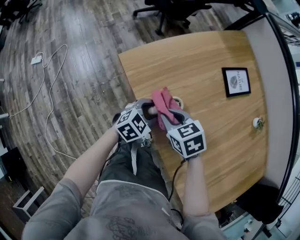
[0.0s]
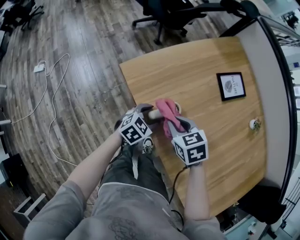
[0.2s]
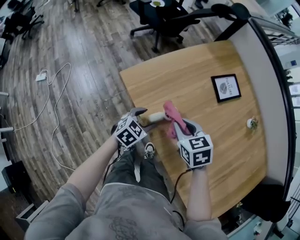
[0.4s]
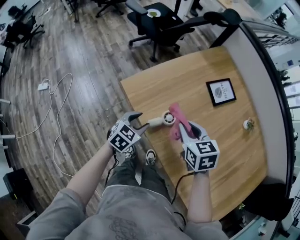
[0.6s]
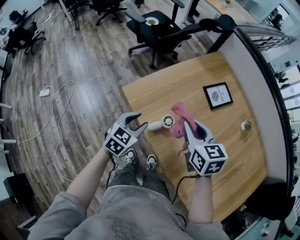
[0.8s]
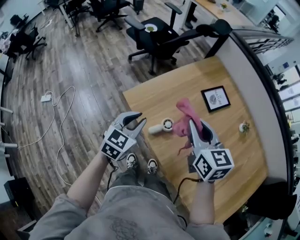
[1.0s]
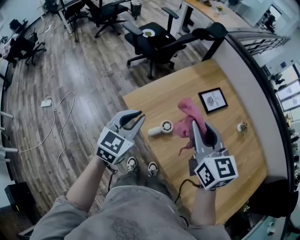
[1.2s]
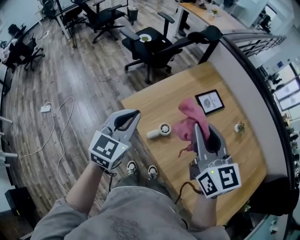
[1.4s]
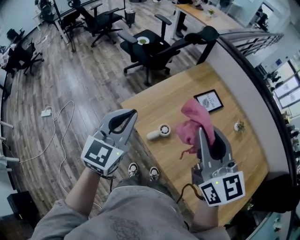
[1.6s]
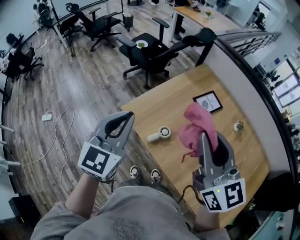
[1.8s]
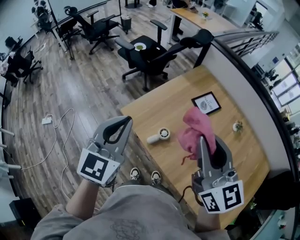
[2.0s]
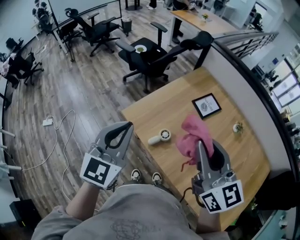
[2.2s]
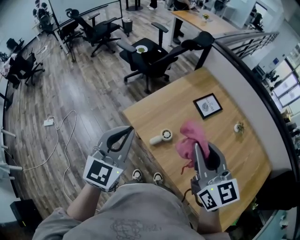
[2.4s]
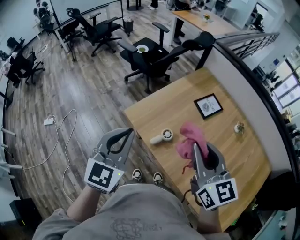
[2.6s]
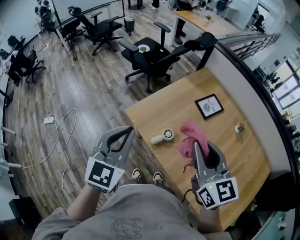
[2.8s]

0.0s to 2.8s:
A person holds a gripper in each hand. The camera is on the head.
0.0s to 1.4s: Both grippers move upward, roughly 35 cm. The left gripper rotates roughly 30 degrees, and closes up, while the right gripper tilts its fingers some 50 degrees upward.
1.4s to 2.8s: The left gripper shifts some 10 cm backward and upward. Meanwhile the right gripper travels backward by roughly 5 cm.

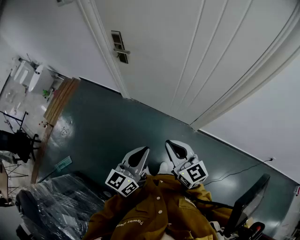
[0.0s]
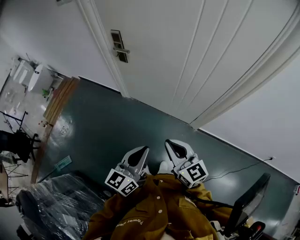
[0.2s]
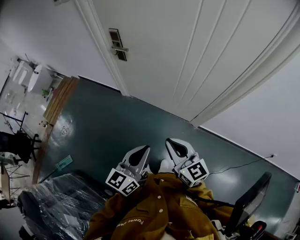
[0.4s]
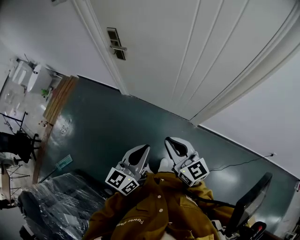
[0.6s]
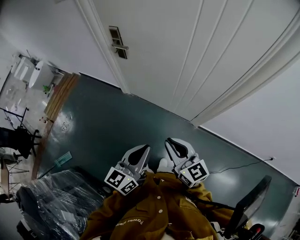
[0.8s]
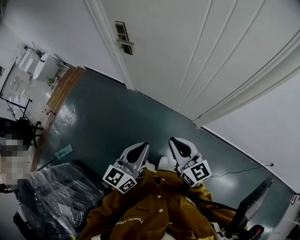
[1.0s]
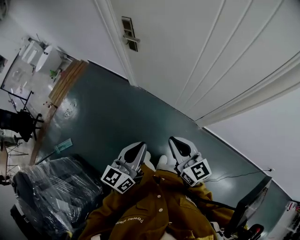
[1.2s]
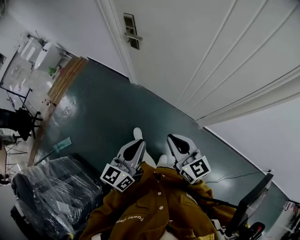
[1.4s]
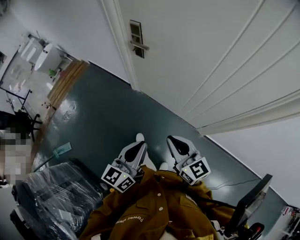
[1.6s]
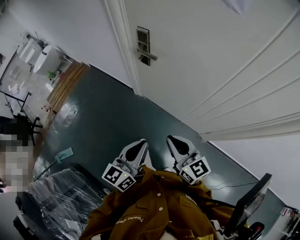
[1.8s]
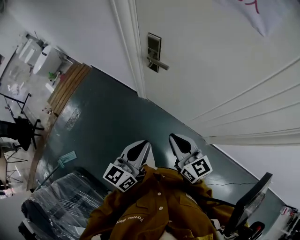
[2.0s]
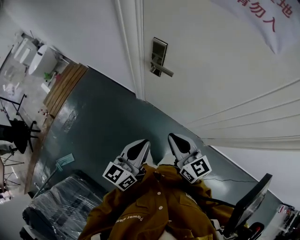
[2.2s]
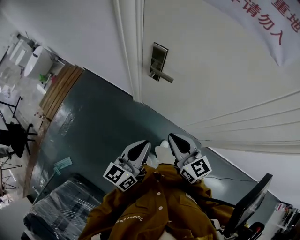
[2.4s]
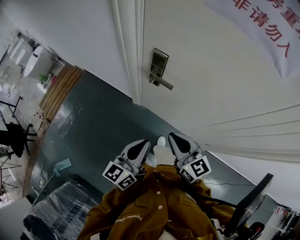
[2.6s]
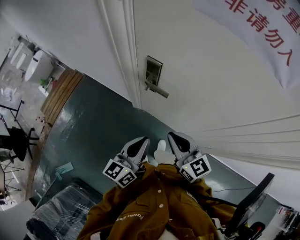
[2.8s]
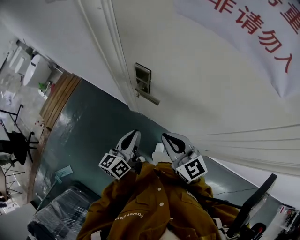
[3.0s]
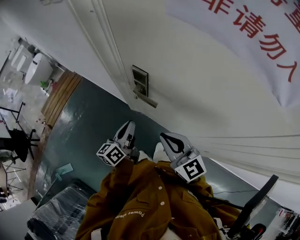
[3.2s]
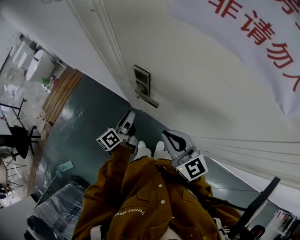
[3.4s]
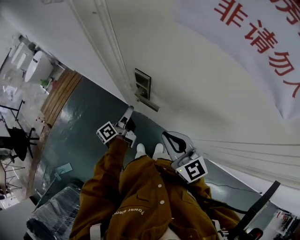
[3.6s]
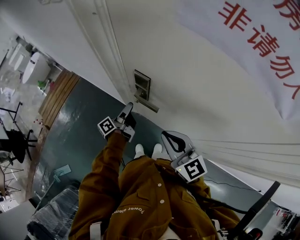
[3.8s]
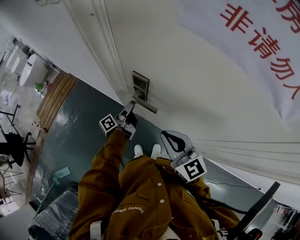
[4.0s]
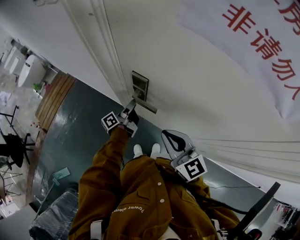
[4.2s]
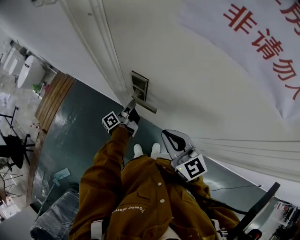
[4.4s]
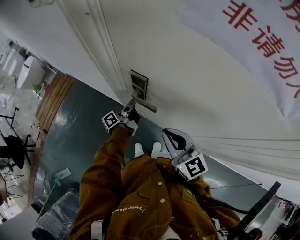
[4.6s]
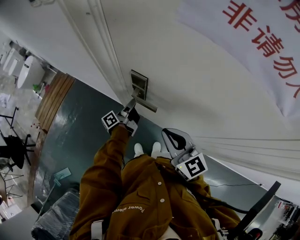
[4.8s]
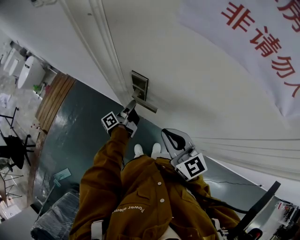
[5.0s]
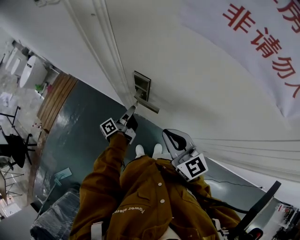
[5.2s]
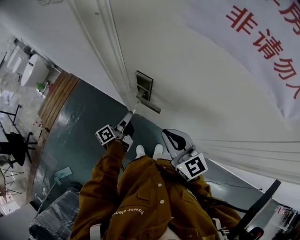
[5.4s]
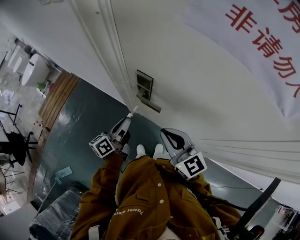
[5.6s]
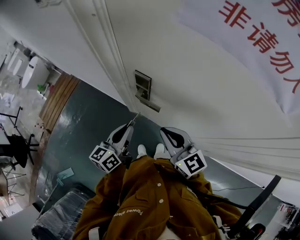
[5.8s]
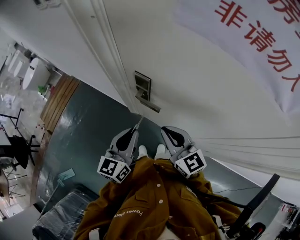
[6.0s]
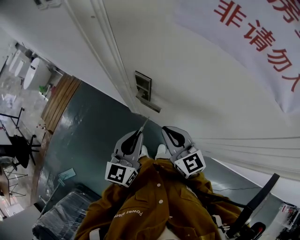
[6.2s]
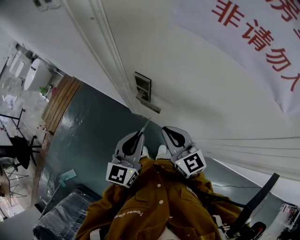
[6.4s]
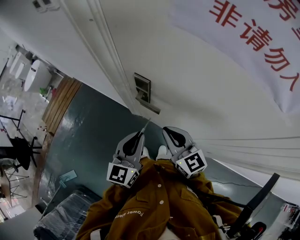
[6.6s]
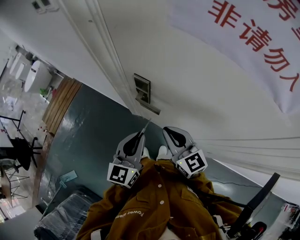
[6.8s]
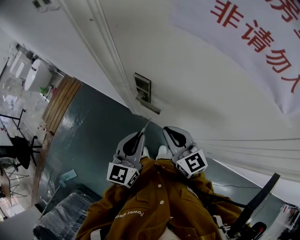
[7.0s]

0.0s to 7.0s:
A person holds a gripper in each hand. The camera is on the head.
0.0s to 1.4s: The two grippers go about 5 cm forward.
1.4s to 2.8s: The two grippers go approximately 40 cm forward.
2.8s to 4.2s: The right gripper goes some 10 cm forward; the left gripper is displaced forward and downward by approximately 30 cm, rotates around the line of its fingers by roughly 50 degrees, counterclockwise from behind, and opens its fingers.
4.2s to 5.6s: The left gripper moves backward, upward and to the left, about 15 cm, turns by approximately 30 degrees, and closes up.
5.6s to 7.0s: The left gripper travels upward, backward and to the right by some 15 cm, and twists some 50 degrees clockwise, seen from behind.

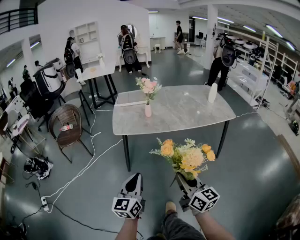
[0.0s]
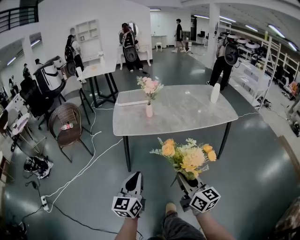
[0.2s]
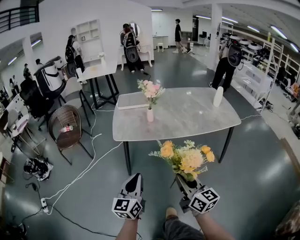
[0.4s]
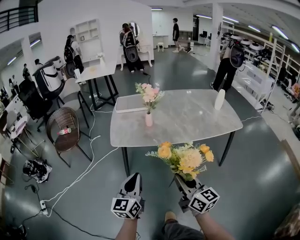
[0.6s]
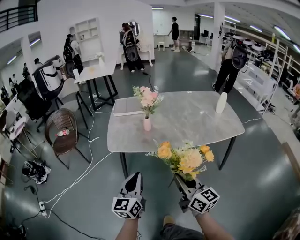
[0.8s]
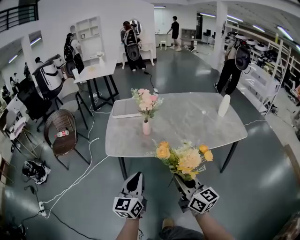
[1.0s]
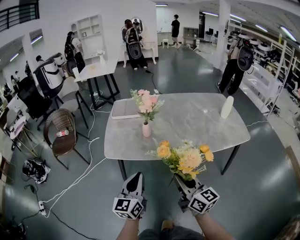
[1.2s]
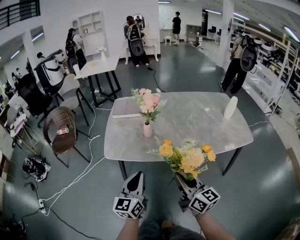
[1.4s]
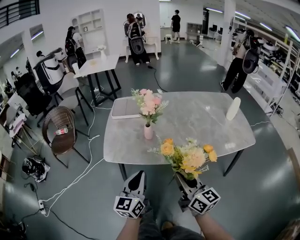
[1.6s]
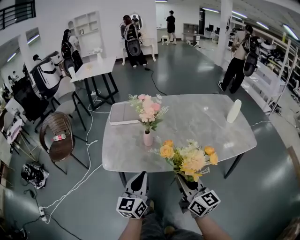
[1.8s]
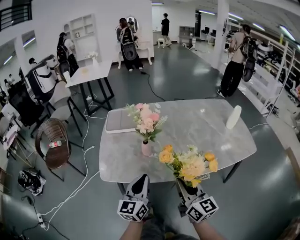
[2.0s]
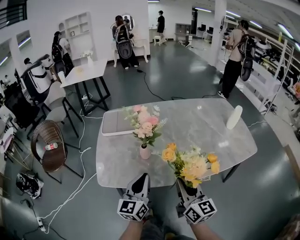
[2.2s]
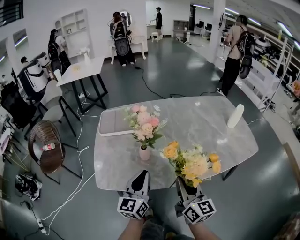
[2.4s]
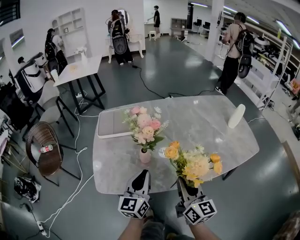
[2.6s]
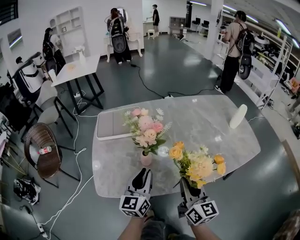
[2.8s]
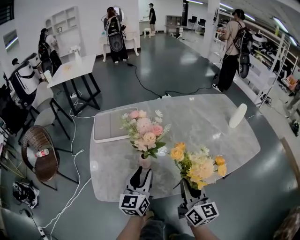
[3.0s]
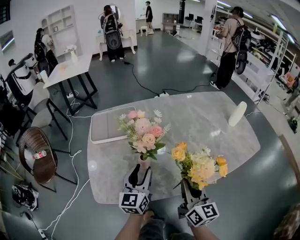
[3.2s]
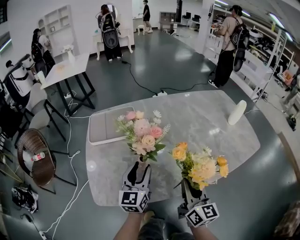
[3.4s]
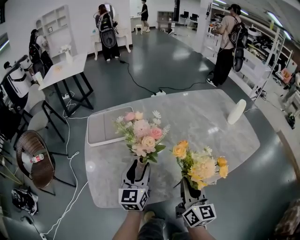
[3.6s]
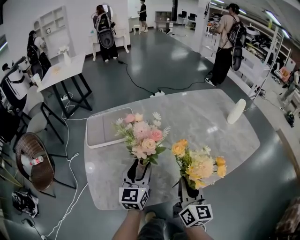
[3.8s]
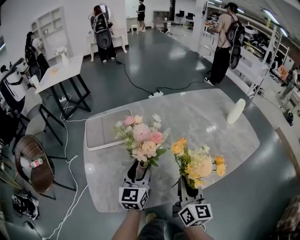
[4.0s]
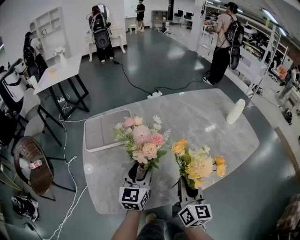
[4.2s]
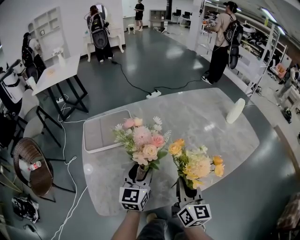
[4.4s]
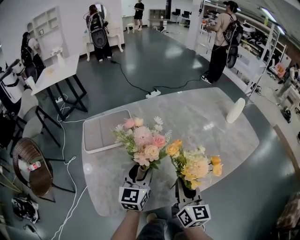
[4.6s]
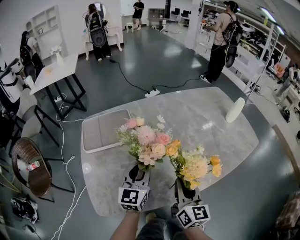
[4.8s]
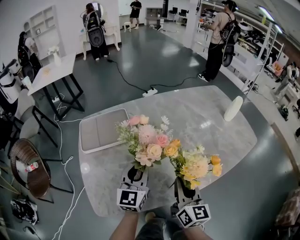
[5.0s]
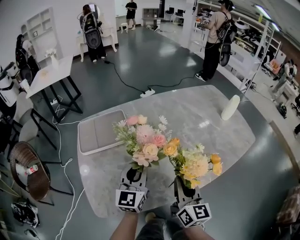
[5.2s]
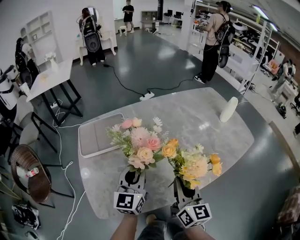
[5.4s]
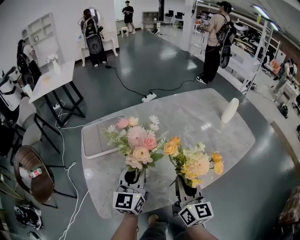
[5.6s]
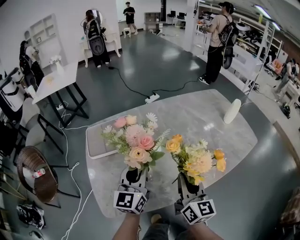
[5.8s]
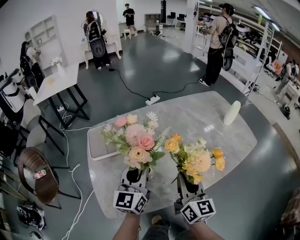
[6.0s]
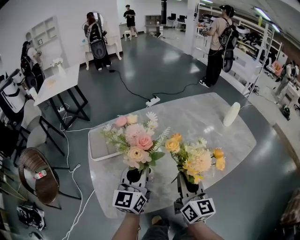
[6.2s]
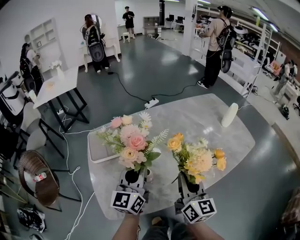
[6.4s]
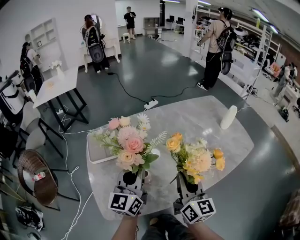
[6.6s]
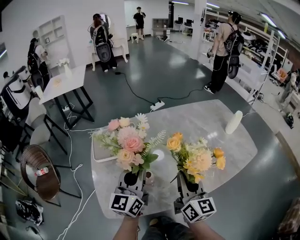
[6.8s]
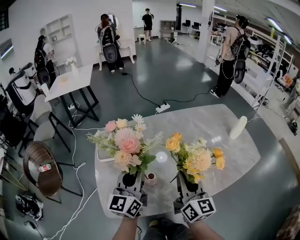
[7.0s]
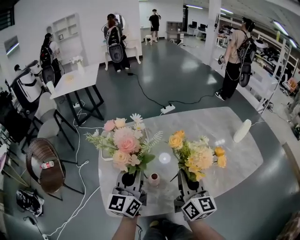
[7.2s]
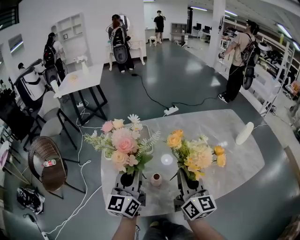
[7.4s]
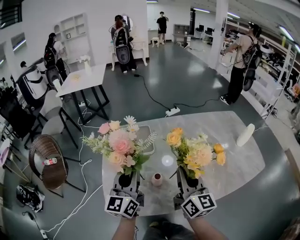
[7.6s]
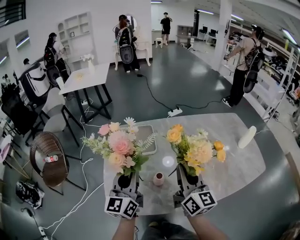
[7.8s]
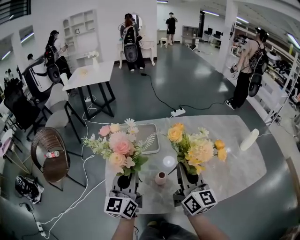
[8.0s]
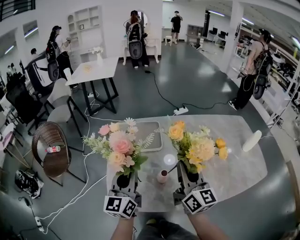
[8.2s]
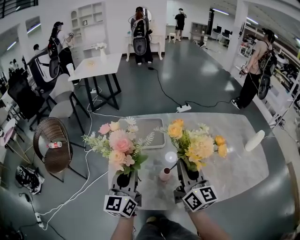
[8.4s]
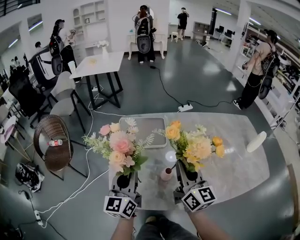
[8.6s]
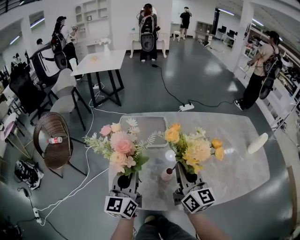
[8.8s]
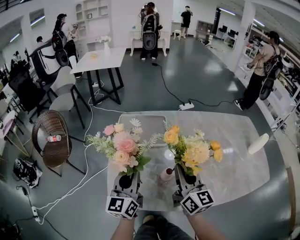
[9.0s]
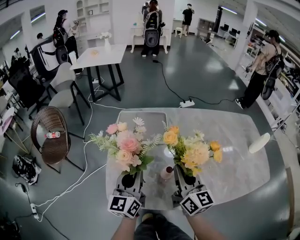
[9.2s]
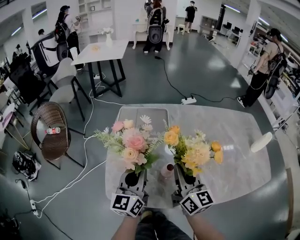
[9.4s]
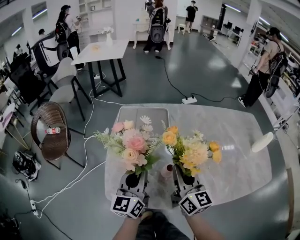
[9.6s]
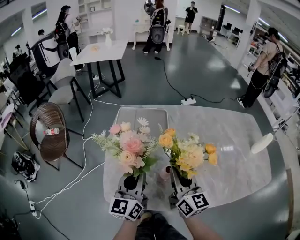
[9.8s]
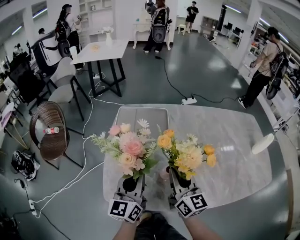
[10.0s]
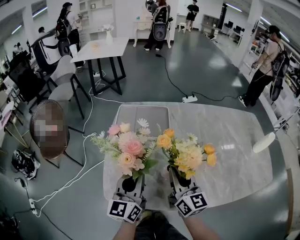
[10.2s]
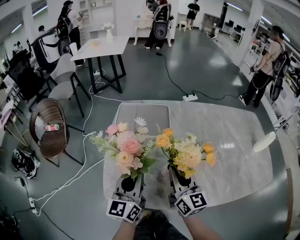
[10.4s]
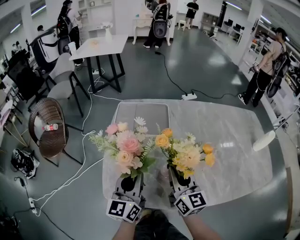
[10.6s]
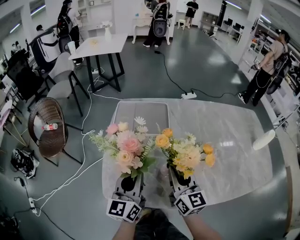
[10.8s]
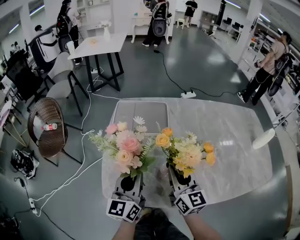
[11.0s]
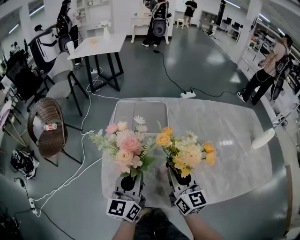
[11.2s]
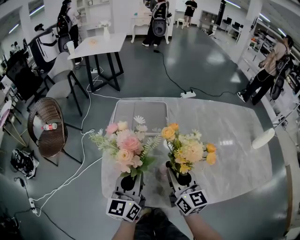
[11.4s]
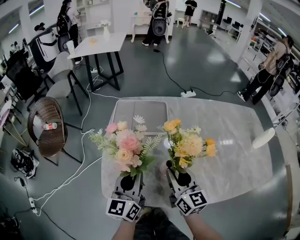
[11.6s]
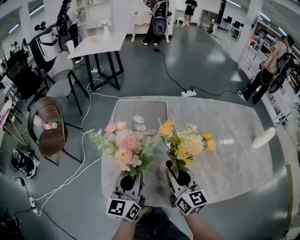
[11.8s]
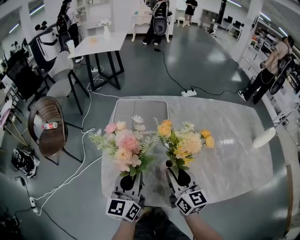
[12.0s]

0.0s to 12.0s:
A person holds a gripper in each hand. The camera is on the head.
0.0s to 1.6s: Both grippers travel together forward, roughly 30 cm.
1.6s to 3.0s: The two grippers go roughly 20 cm forward. The right gripper rotates some 30 degrees, while the left gripper opens its fingers.
3.0s to 4.4s: The right gripper changes place by about 5 cm, while the left gripper heads forward, covering roughly 10 cm.
4.4s to 6.0s: The right gripper goes some 5 cm upward. The left gripper moves upward, roughly 10 cm, and closes up.
6.0s to 7.6s: The left gripper moves to the left and upward, approximately 10 cm; the right gripper heads upward and forward, covering roughly 10 cm.
7.6s to 9.0s: The right gripper heads to the left, covering about 5 cm; the left gripper is displaced downward and to the left by approximately 10 cm.
9.0s to 10.4s: The right gripper is displaced downward by some 5 cm.
10.4s to 12.0s: The grippers move only a little.

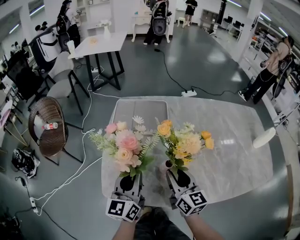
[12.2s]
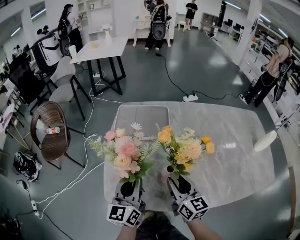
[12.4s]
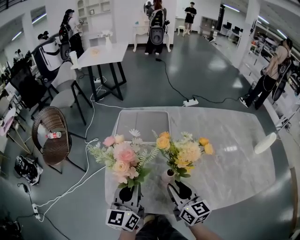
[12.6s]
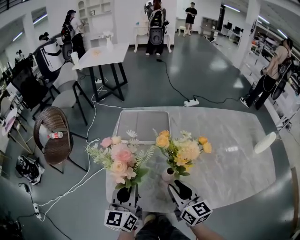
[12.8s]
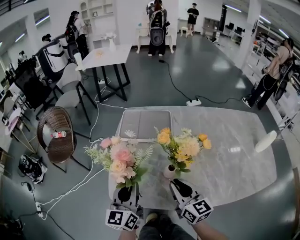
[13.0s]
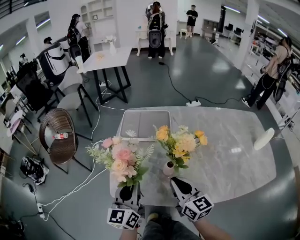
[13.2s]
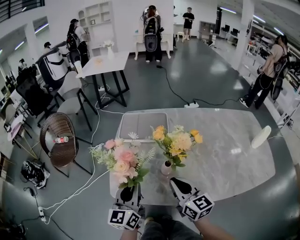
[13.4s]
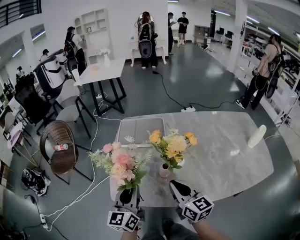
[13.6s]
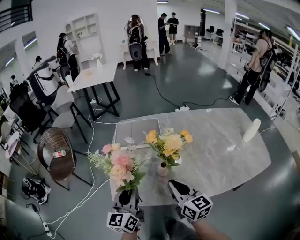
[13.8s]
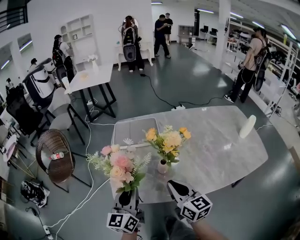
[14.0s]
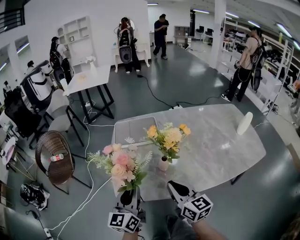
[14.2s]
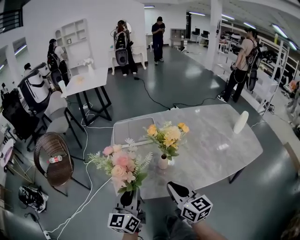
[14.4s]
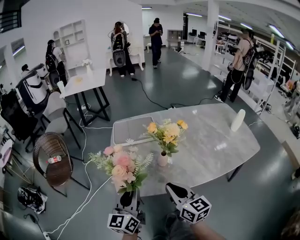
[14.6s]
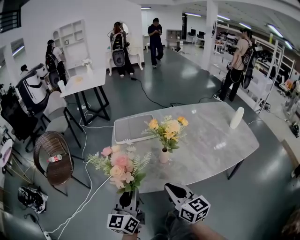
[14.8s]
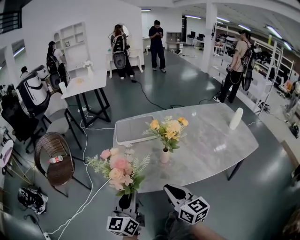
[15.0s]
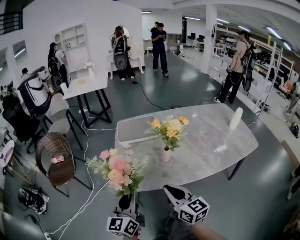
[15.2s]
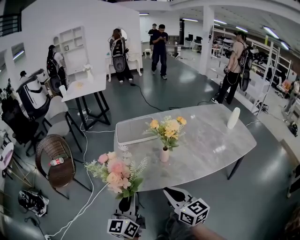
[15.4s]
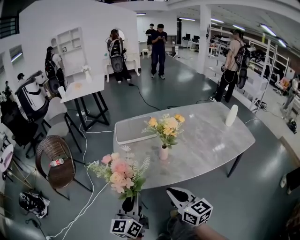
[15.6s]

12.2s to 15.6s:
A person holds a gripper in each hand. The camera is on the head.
12.2s to 13.8s: The left gripper moves backward, about 5 cm. Meanwhile the right gripper shifts approximately 10 cm backward and upward, and closes up.
13.8s to 15.6s: The two grippers go some 15 cm backward and to the left.
